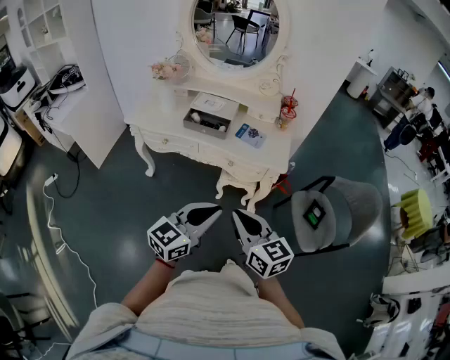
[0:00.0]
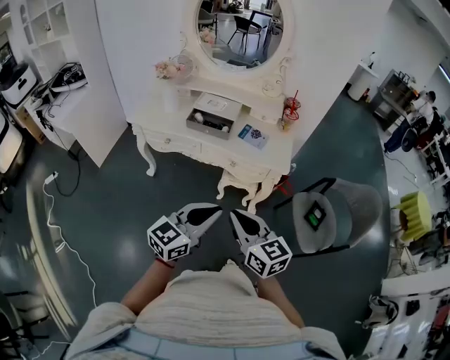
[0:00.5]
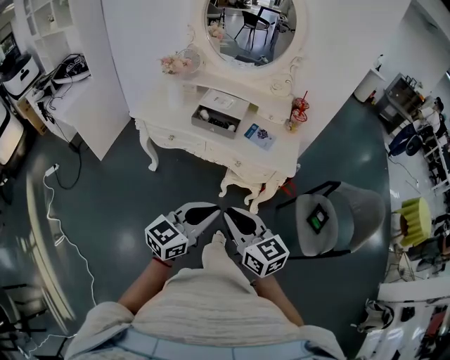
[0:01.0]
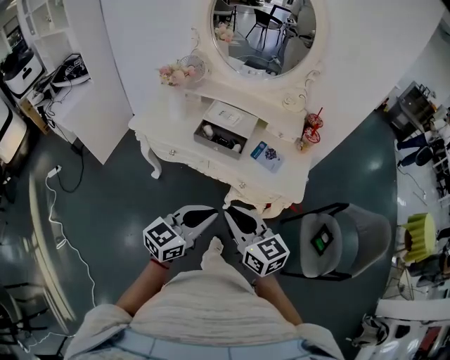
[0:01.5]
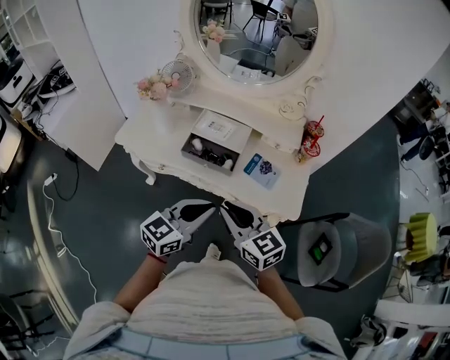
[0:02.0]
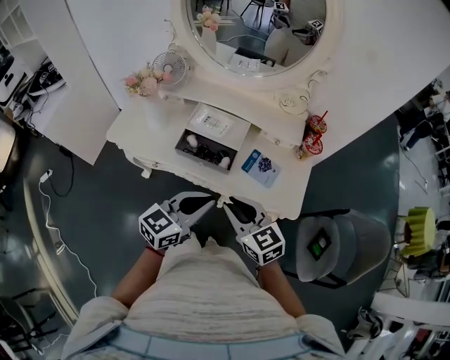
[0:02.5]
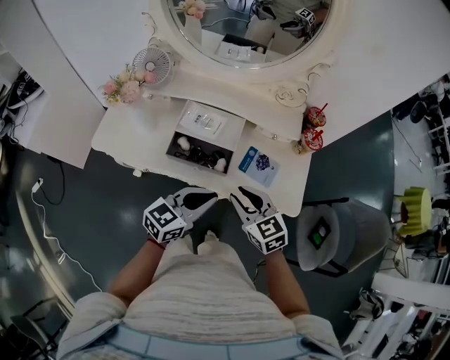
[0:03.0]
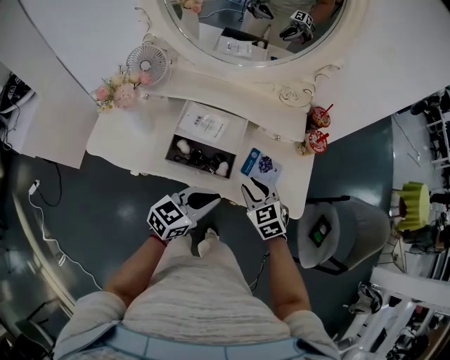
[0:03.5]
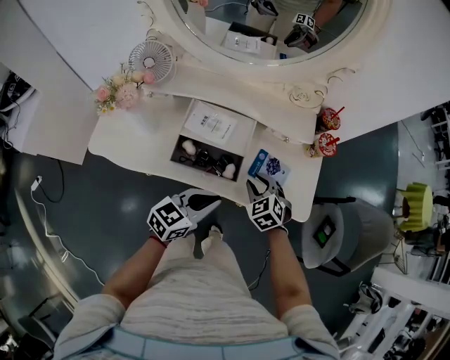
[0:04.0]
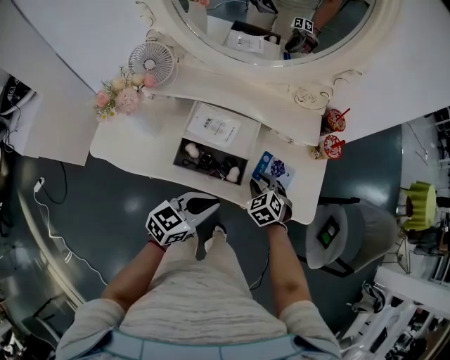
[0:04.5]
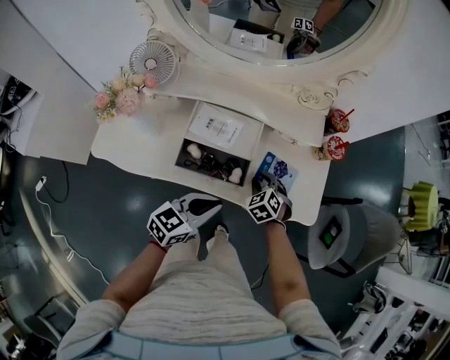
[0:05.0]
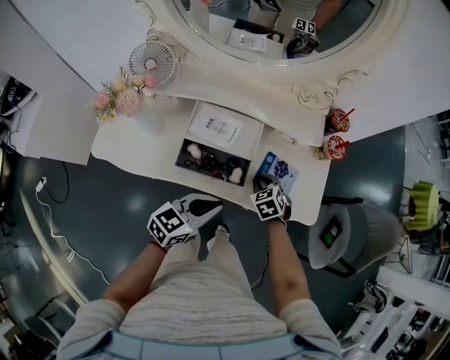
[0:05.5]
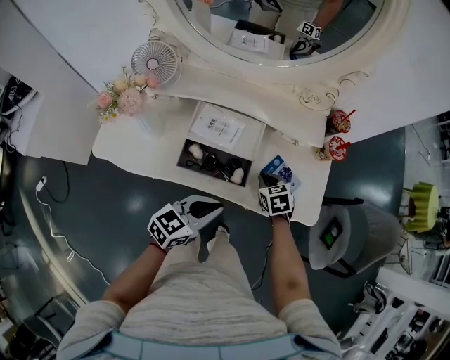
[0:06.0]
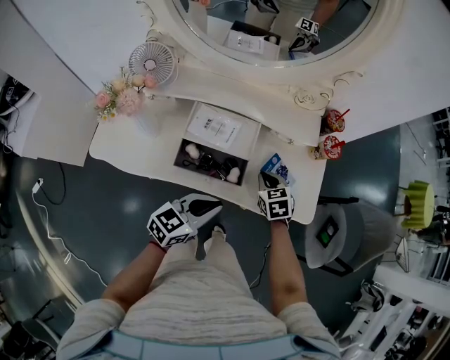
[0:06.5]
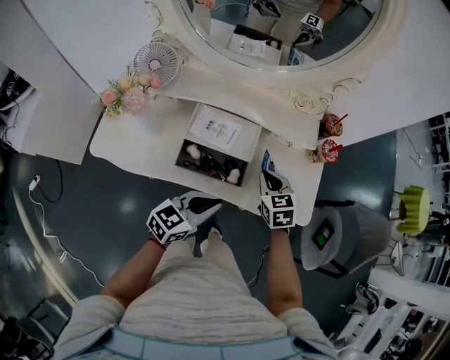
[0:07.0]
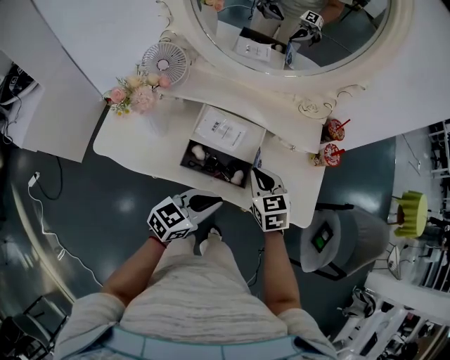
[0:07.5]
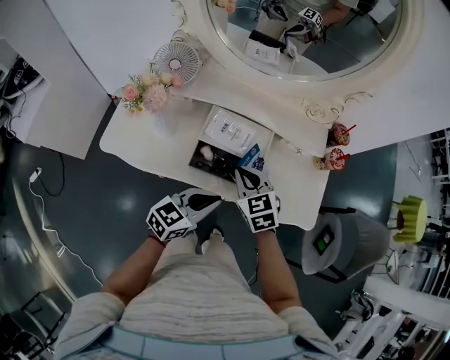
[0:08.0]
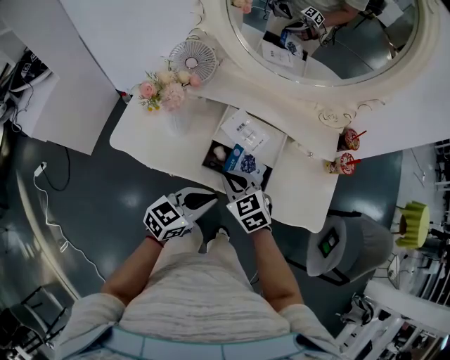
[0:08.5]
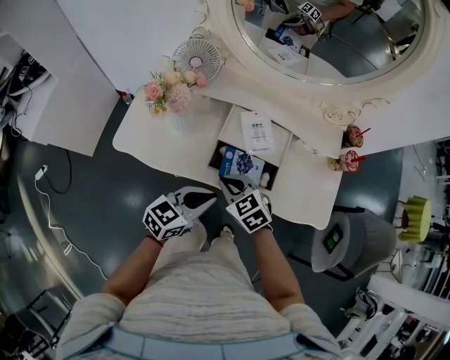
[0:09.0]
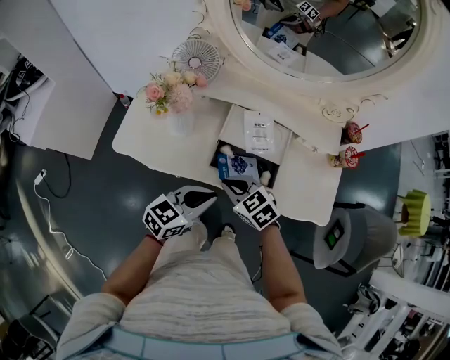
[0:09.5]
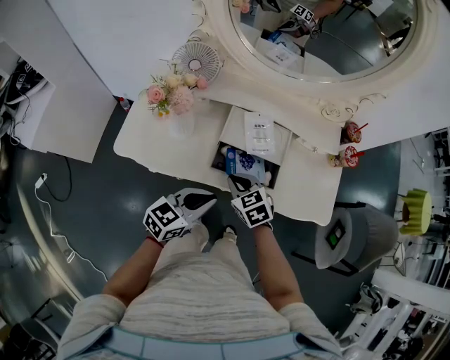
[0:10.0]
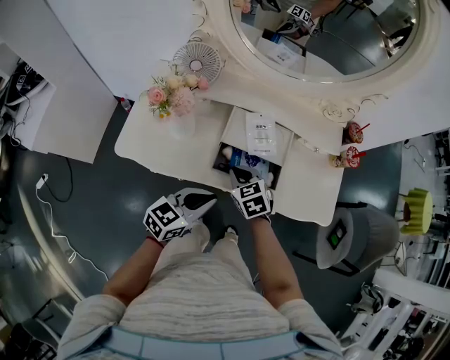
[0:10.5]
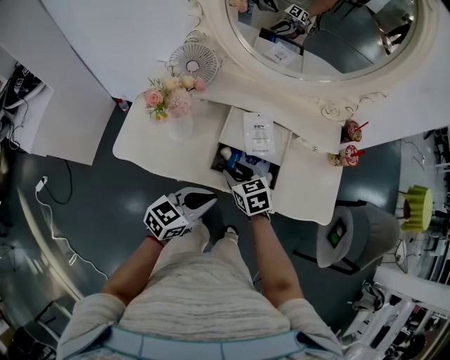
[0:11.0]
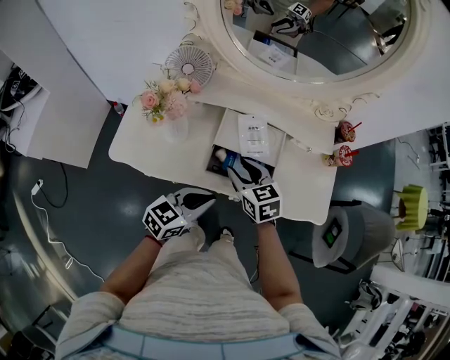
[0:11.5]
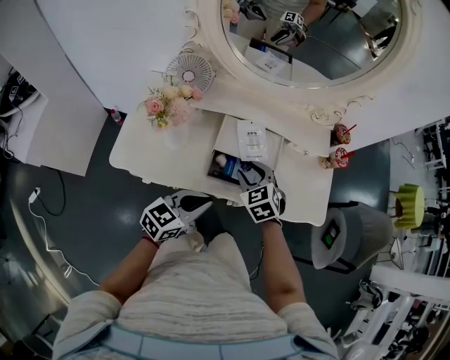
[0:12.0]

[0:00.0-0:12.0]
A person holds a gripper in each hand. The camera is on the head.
0:00.0 to 0:02.0: The two grippers go some 25 cm forward.
0:02.0 to 0:04.0: The right gripper moves forward and downward, roughly 30 cm, and tilts its fingers about 40 degrees downward, while the left gripper moves forward and downward, some 20 cm, and rotates some 20 degrees.
0:04.0 to 0:06.0: The right gripper travels downward by some 5 cm, and swivels approximately 30 degrees.
0:06.0 to 0:08.0: The right gripper travels upward, to the left and backward by roughly 20 cm, and swivels roughly 20 degrees.
0:08.0 to 0:10.0: The left gripper travels to the left by approximately 10 cm. Meanwhile the right gripper is displaced to the left and downward by roughly 10 cm.
0:10.0 to 0:12.0: The right gripper shifts some 5 cm forward, and opens.

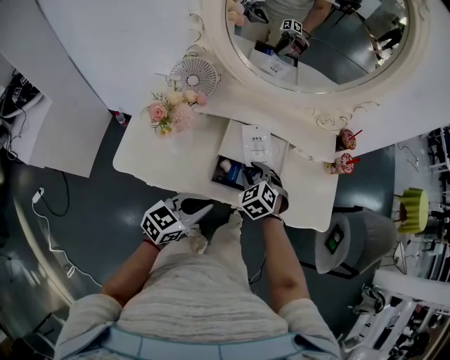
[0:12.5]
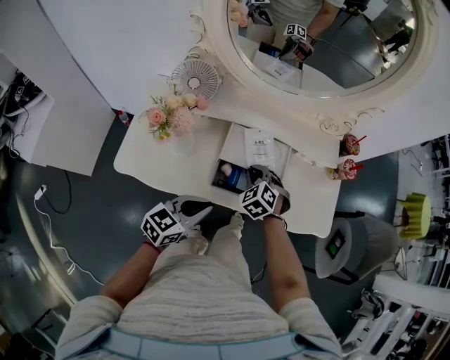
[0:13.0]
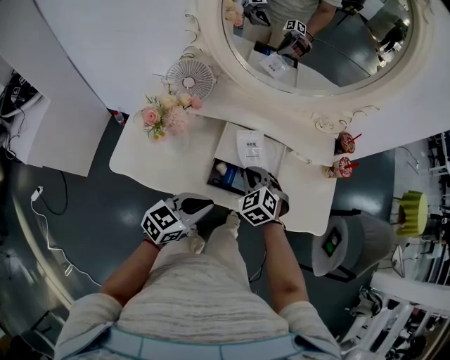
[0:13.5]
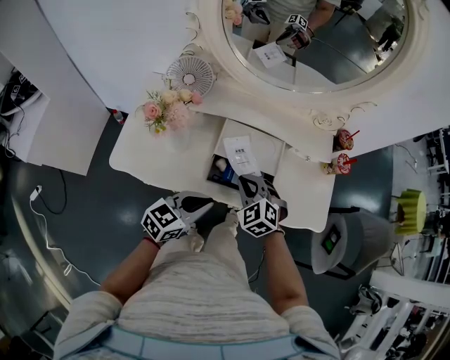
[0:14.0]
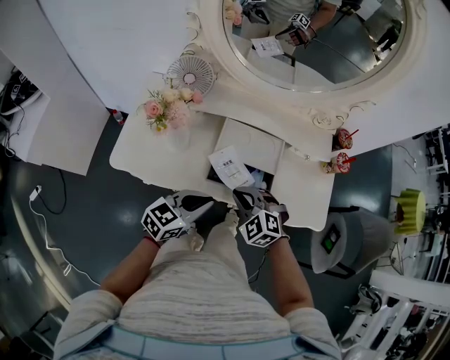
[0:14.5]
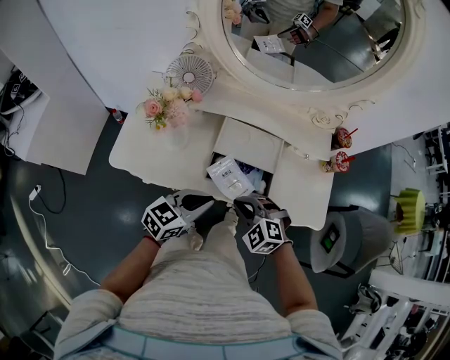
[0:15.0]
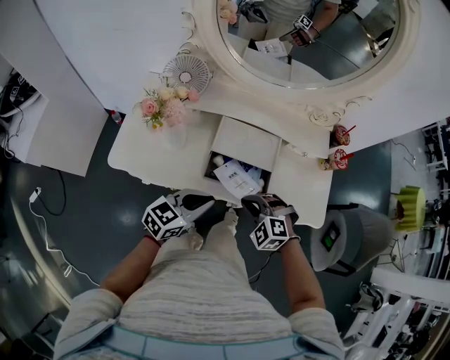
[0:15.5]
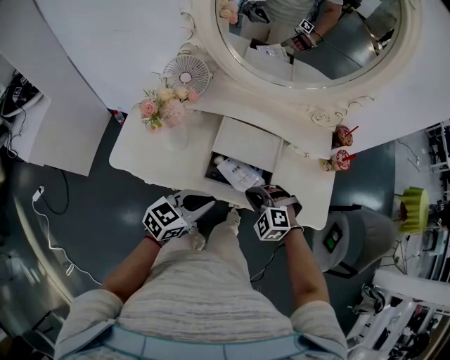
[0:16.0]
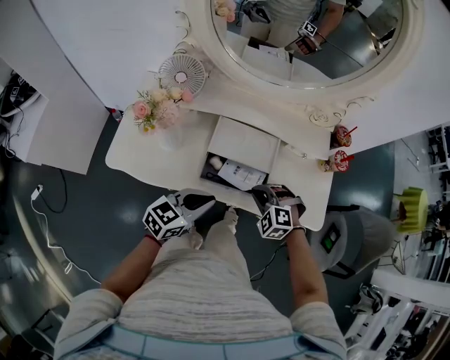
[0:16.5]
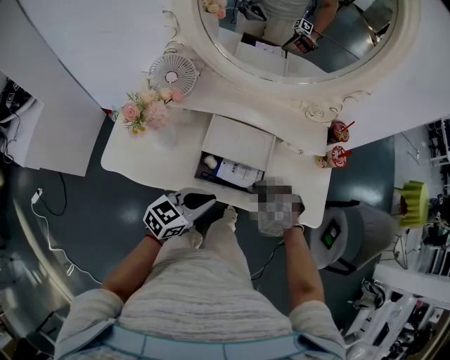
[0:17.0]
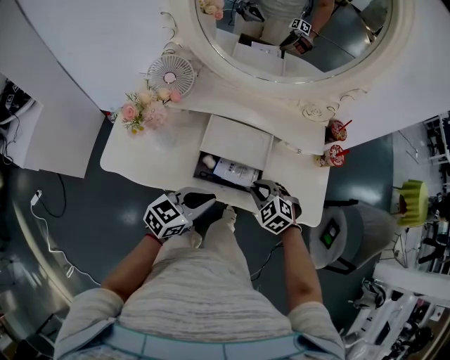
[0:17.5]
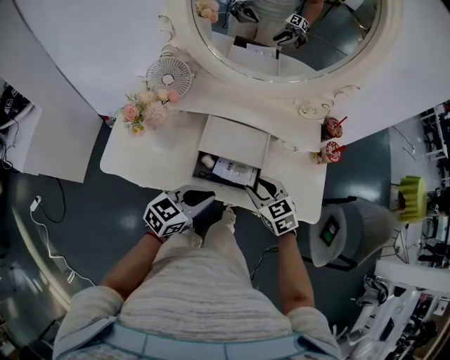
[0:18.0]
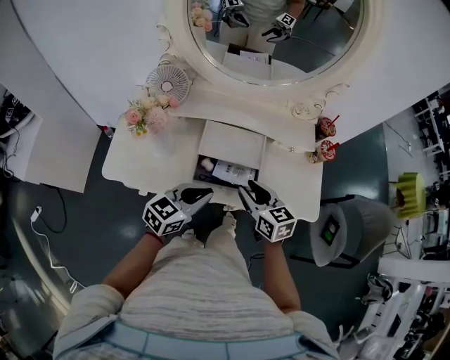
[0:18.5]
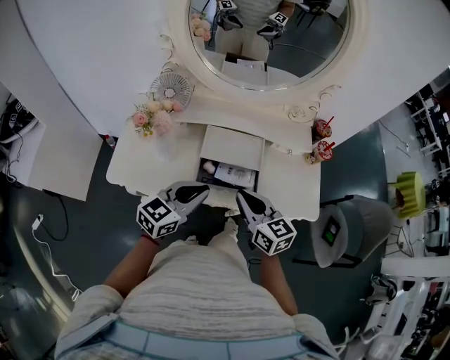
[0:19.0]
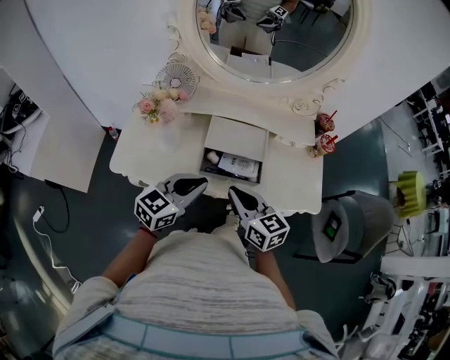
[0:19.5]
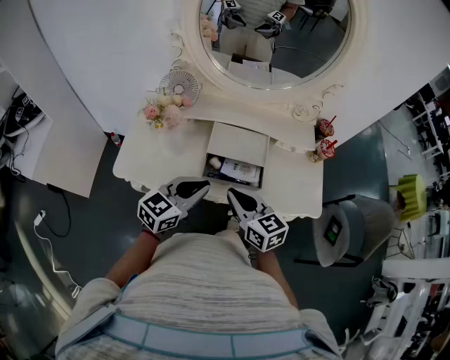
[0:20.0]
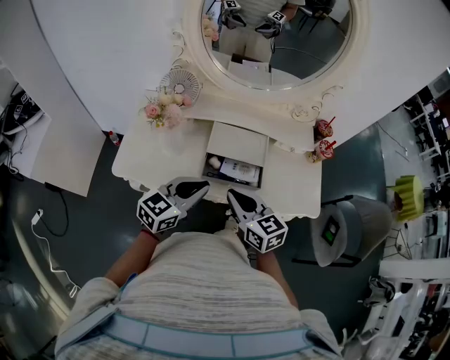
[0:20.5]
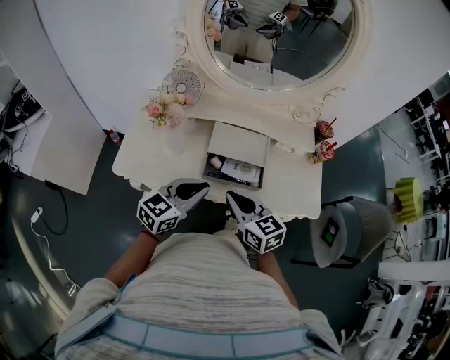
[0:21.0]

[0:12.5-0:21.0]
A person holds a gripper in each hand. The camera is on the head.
0:12.5 to 0:14.5: The right gripper is displaced backward by roughly 10 cm, changes its angle by roughly 20 degrees, and closes.
0:14.5 to 0:16.5: The right gripper heads to the right, covering about 10 cm.
0:16.5 to 0:19.0: The left gripper goes approximately 10 cm upward. The right gripper travels upward by roughly 15 cm, rotates around the line of its fingers by approximately 70 degrees, clockwise from behind, and opens, then closes once more.
0:19.0 to 0:21.0: The right gripper shifts by approximately 5 cm.

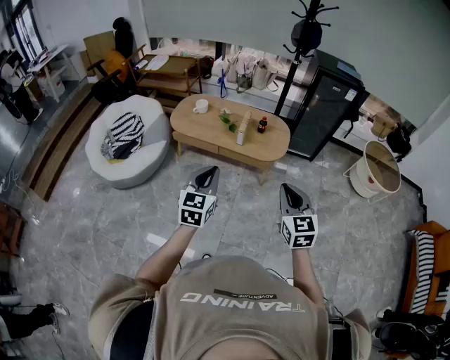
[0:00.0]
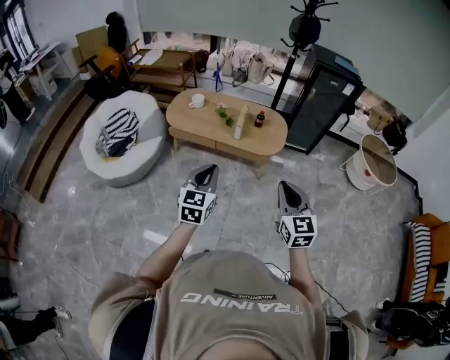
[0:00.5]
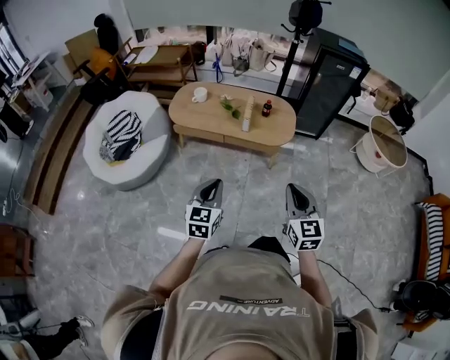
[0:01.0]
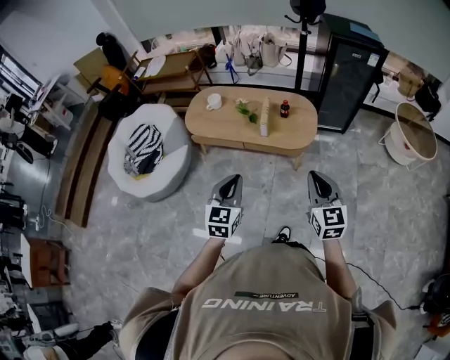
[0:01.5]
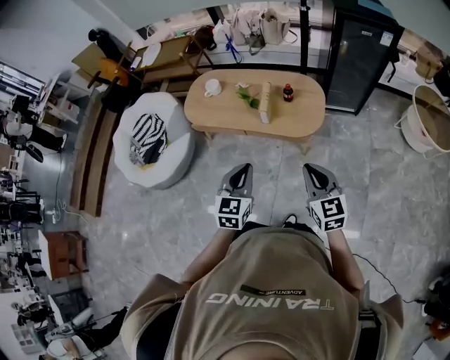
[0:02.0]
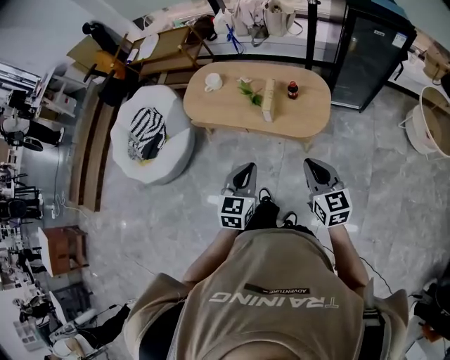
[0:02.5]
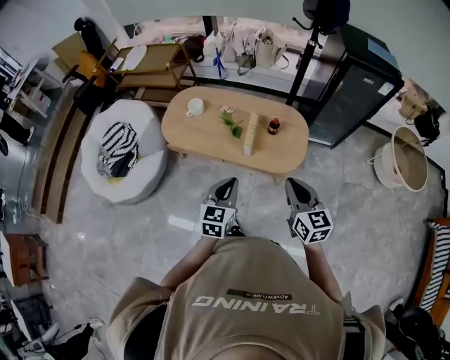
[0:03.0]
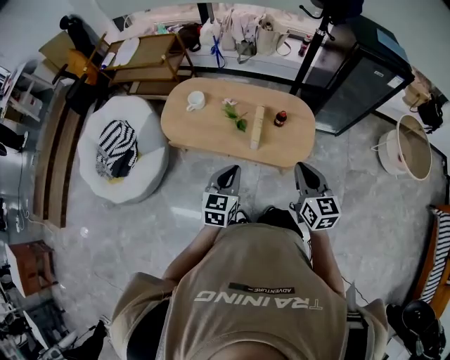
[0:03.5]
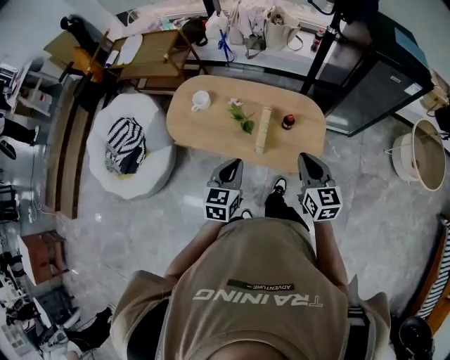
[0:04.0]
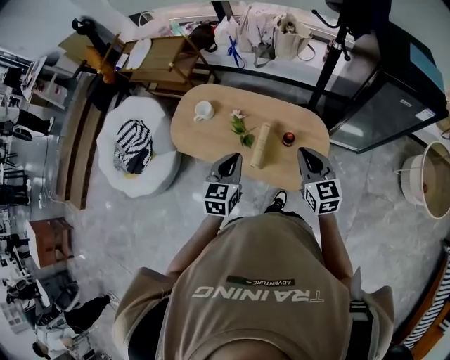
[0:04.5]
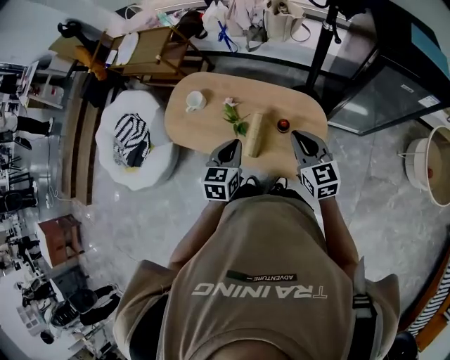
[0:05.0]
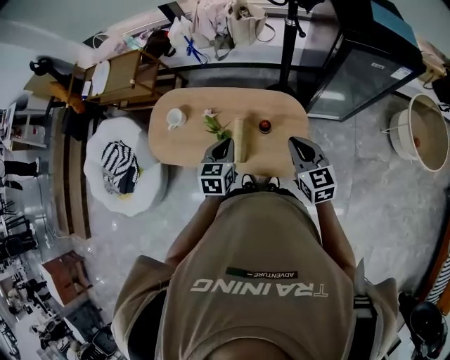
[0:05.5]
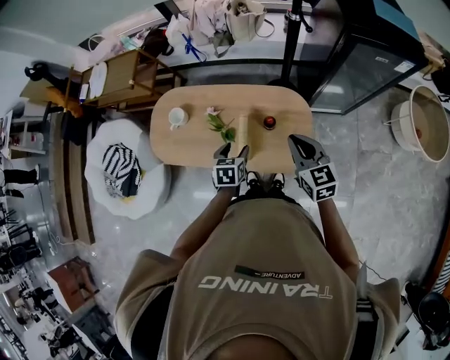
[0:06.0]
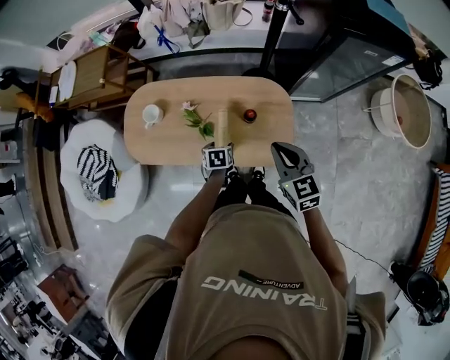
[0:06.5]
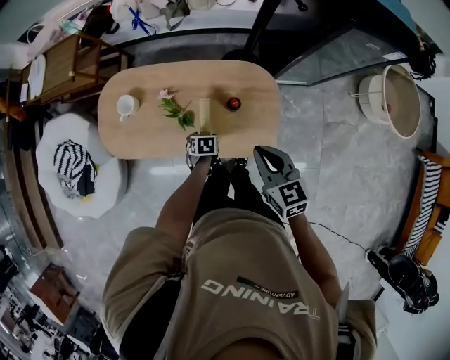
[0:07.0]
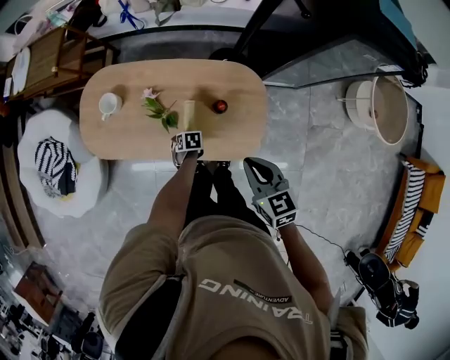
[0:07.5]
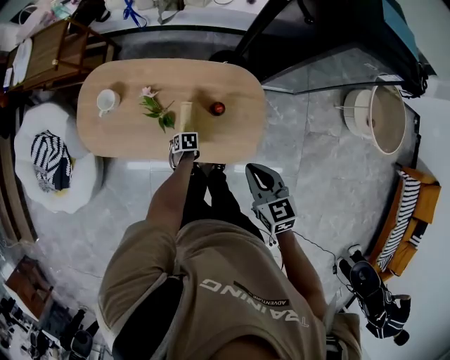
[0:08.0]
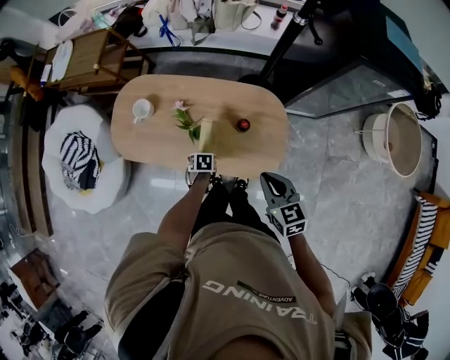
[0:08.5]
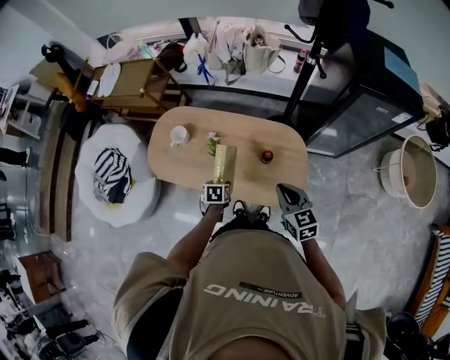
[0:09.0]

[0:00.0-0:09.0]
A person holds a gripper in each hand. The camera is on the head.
0:00.0 to 0:02.0: The two grippers go about 20 cm forward and downward.
0:02.0 to 0:04.5: Both grippers move forward, roughly 40 cm.
0:04.5 to 0:07.0: The right gripper is displaced downward by roughly 5 cm. Meanwhile the left gripper goes about 35 cm downward, tilts its fingers approximately 40 degrees downward, and opens its fingers.
0:07.0 to 0:09.0: The left gripper heads upward, covering roughly 15 cm.
